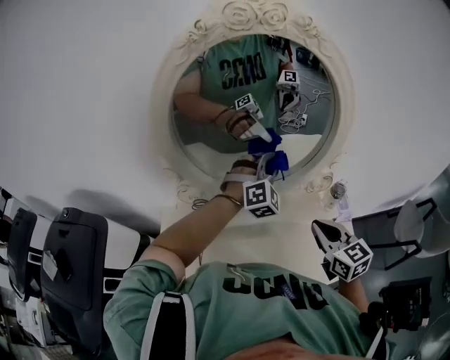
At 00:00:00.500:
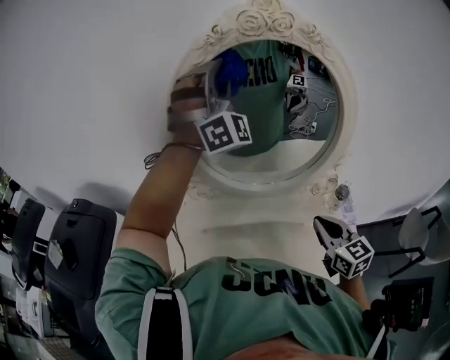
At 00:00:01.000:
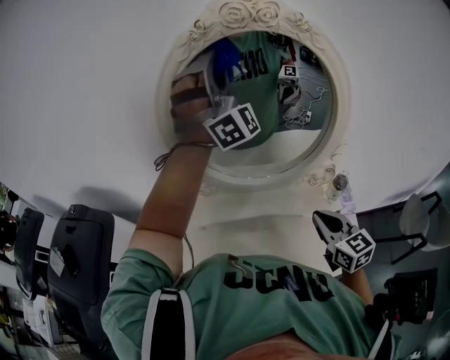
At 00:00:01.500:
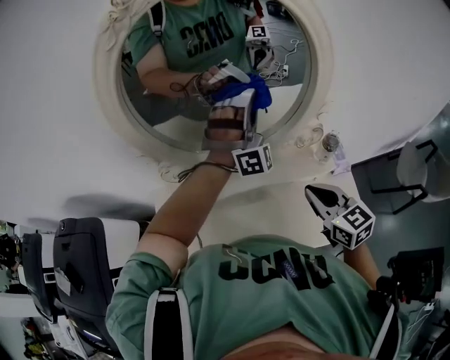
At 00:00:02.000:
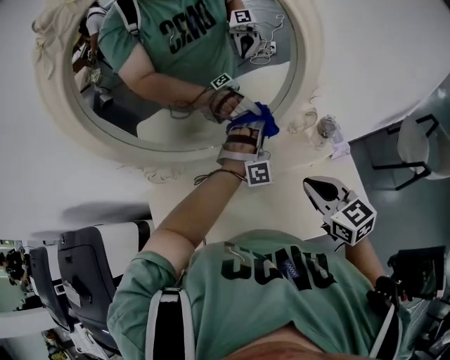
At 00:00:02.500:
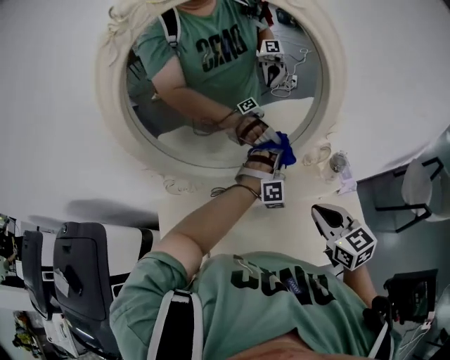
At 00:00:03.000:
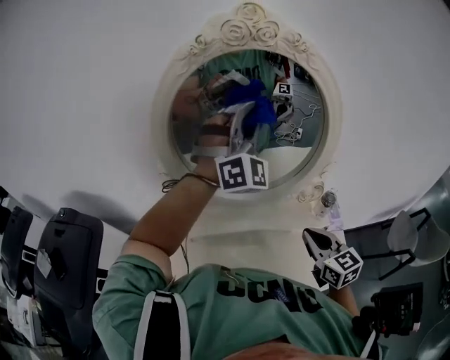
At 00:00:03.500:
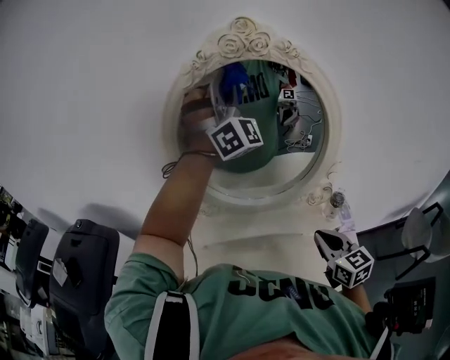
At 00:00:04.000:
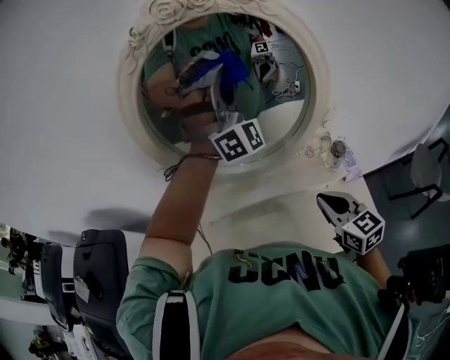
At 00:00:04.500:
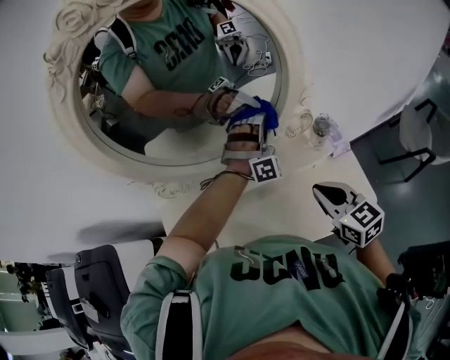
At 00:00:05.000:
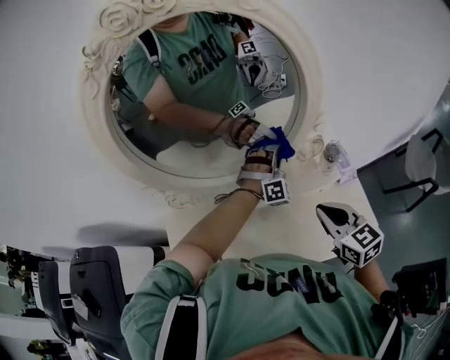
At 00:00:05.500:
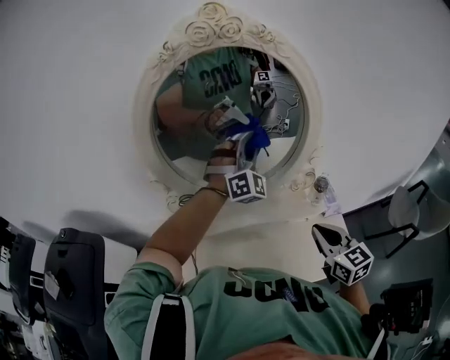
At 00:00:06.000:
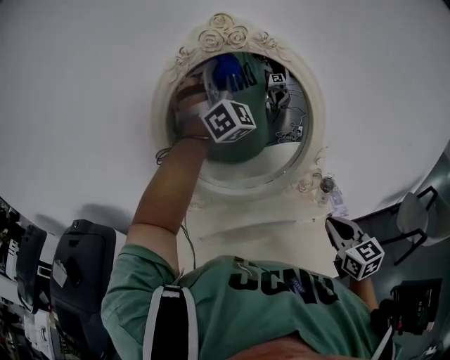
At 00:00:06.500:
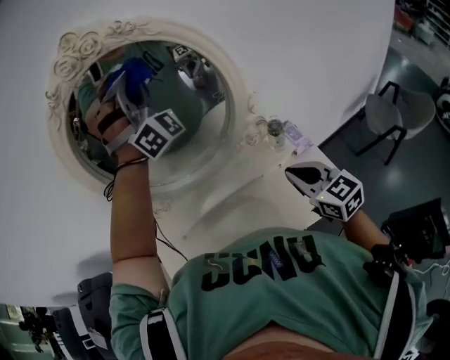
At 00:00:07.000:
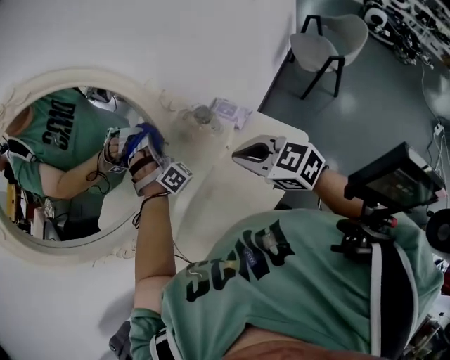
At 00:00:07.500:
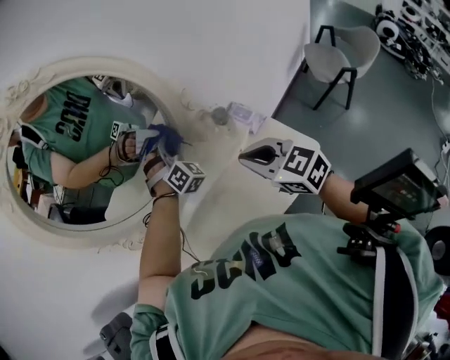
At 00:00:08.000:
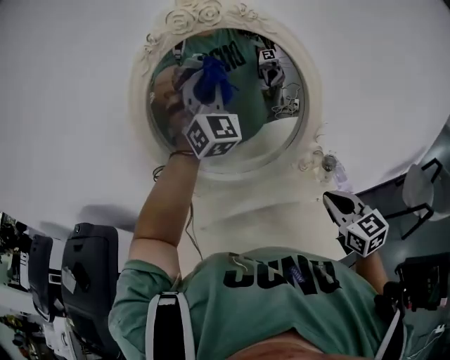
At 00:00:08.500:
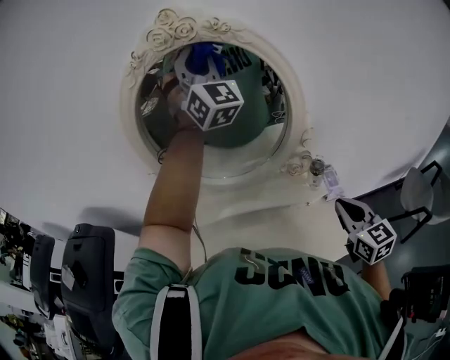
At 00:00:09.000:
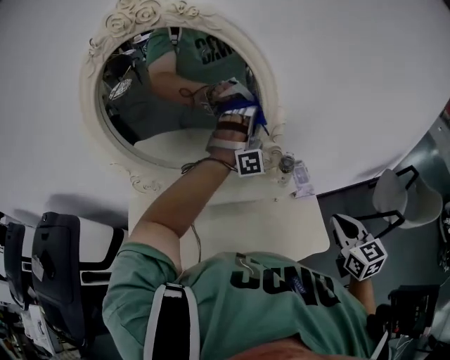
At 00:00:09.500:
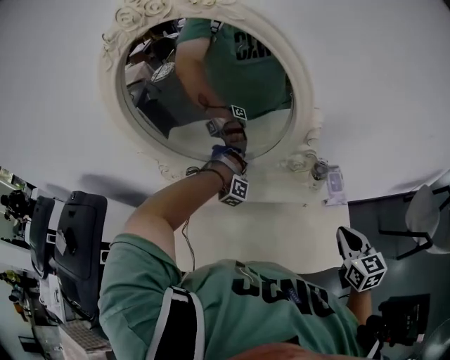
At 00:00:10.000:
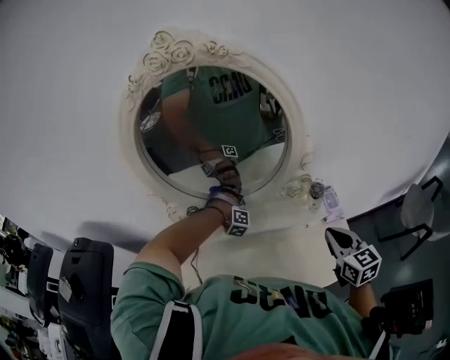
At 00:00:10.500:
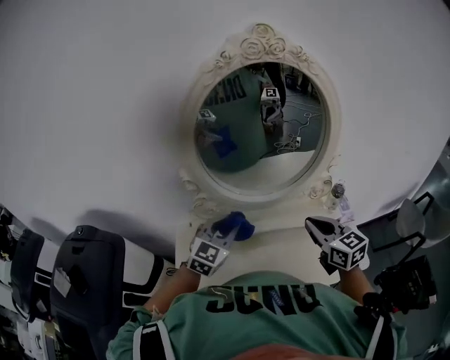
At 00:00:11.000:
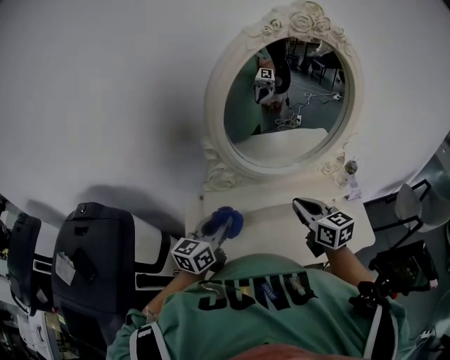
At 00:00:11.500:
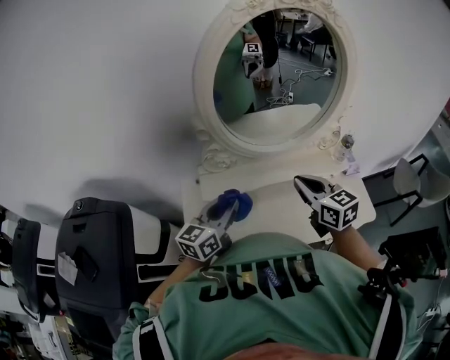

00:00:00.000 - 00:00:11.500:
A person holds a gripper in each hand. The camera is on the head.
00:00:04.000 - 00:00:06.000: The right gripper shifts by approximately 10 cm.
00:00:07.500 - 00:00:09.500: The right gripper ends up approximately 15 cm from where it was.
00:00:09.500 - 00:00:11.500: The right gripper changes place by roughly 40 cm.

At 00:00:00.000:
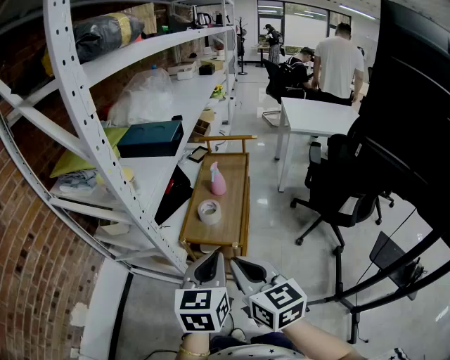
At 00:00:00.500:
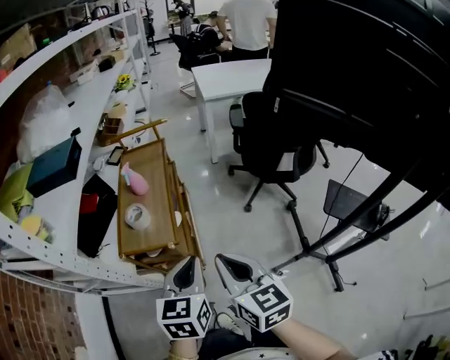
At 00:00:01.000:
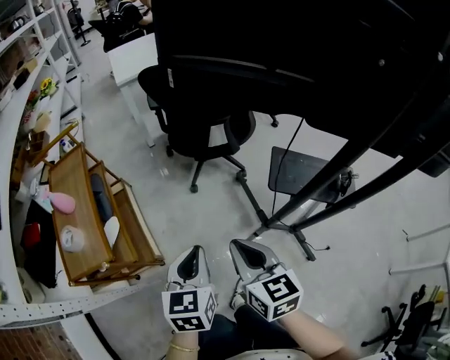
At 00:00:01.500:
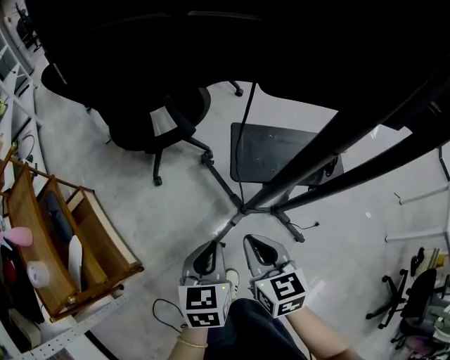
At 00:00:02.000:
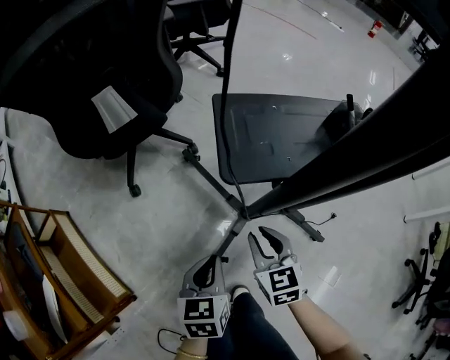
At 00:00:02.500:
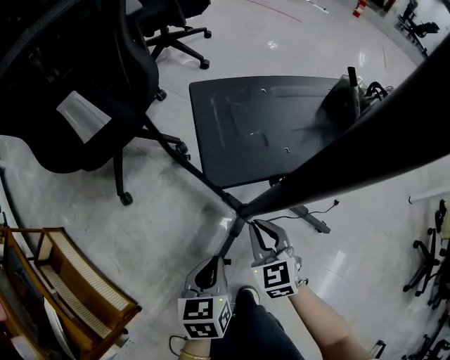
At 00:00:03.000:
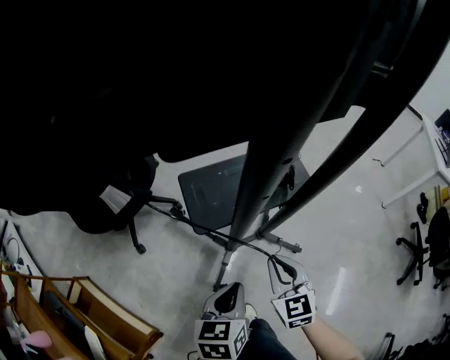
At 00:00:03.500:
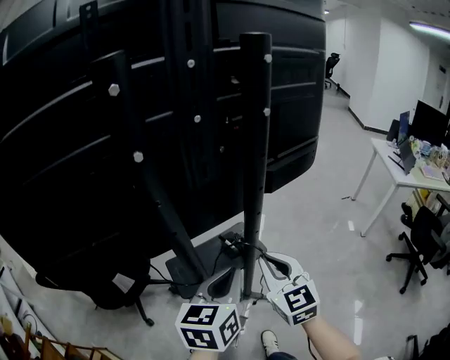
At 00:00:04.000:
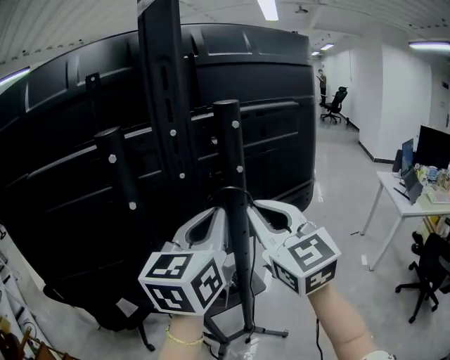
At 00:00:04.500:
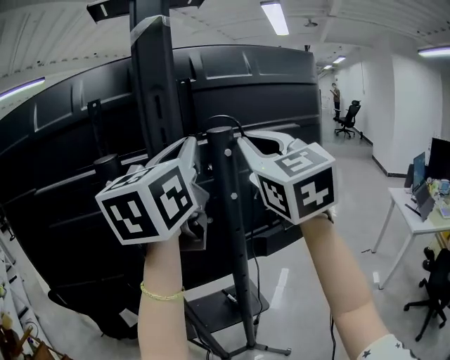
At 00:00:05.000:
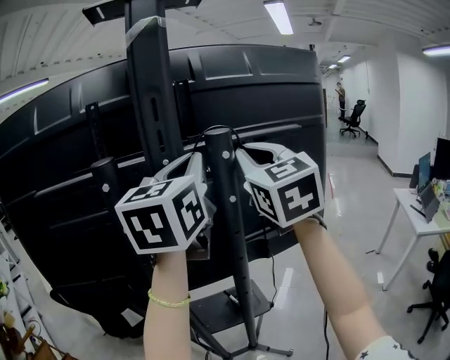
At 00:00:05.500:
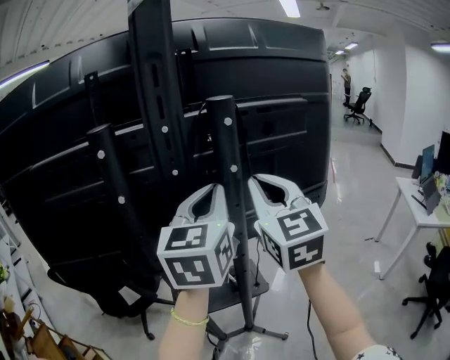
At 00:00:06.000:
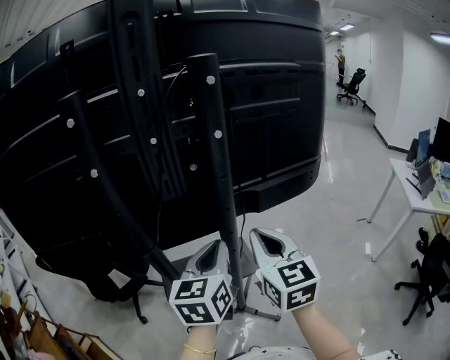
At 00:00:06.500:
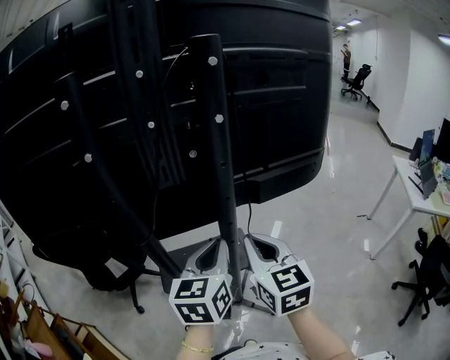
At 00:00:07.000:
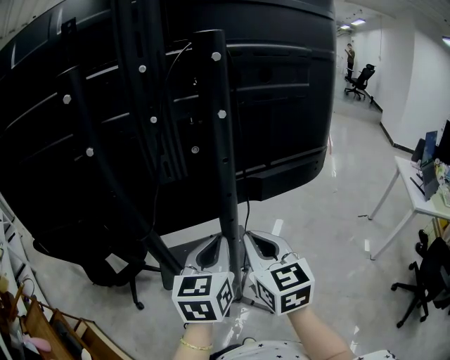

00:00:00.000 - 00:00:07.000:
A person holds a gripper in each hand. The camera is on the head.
00:00:00.000 - 00:00:02.000: The pair of grippers is taken some 60 cm. The left gripper swivels some 60 degrees; the right gripper swivels roughly 70 degrees.
00:00:02.000 - 00:00:03.500: Both grippers move upward, some 50 cm. The left gripper rotates about 40 degrees. Meanwhile the right gripper swivels approximately 30 degrees.
00:00:03.500 - 00:00:05.000: Both grippers travel together upward, approximately 40 cm. The left gripper swivels about 40 degrees. Meanwhile the right gripper rotates some 20 degrees.
00:00:05.000 - 00:00:07.000: Both grippers travel together downward, approximately 35 cm. The right gripper turns by approximately 30 degrees, while the left gripper swivels about 20 degrees.

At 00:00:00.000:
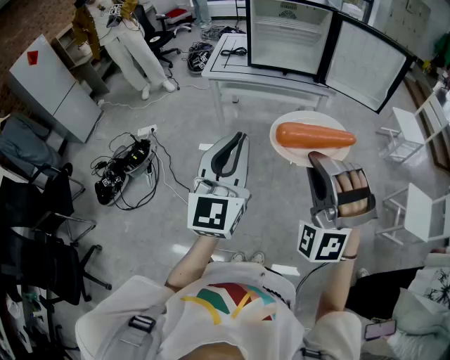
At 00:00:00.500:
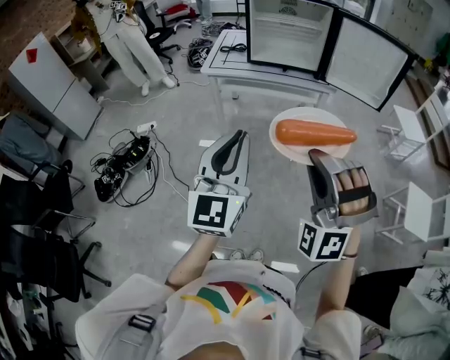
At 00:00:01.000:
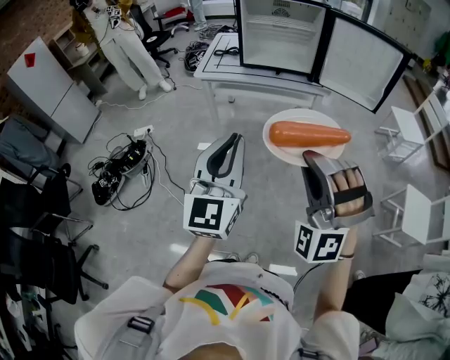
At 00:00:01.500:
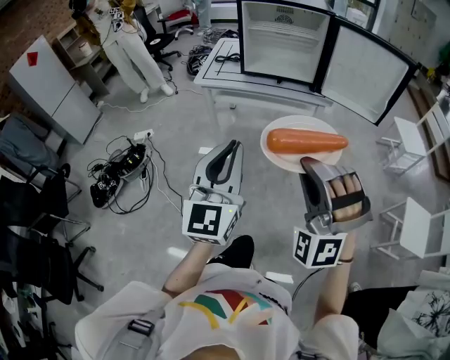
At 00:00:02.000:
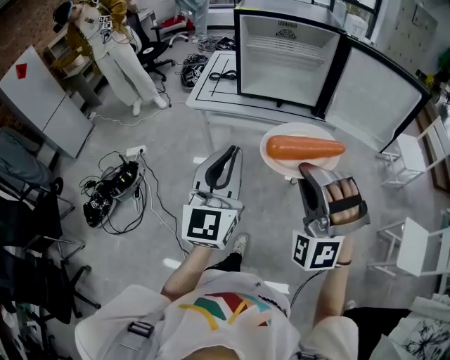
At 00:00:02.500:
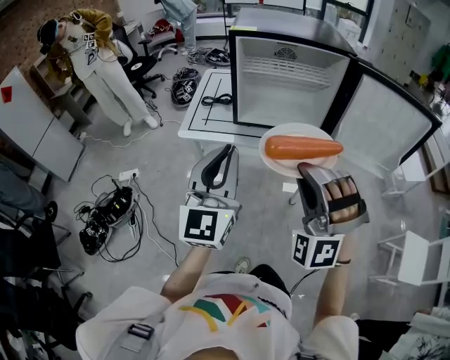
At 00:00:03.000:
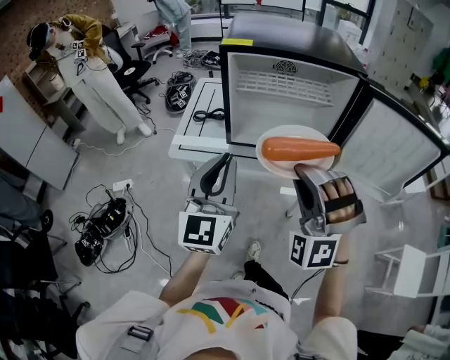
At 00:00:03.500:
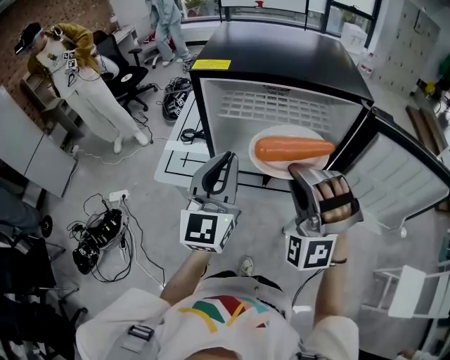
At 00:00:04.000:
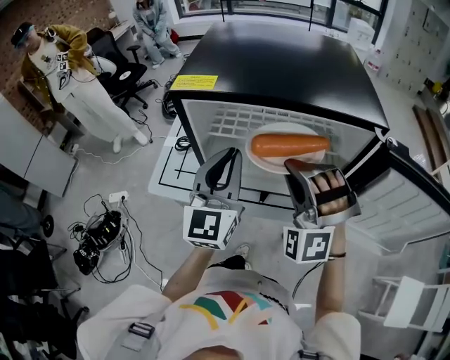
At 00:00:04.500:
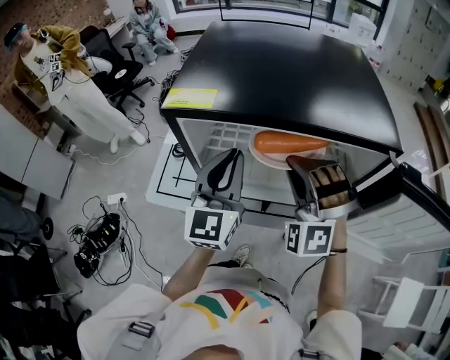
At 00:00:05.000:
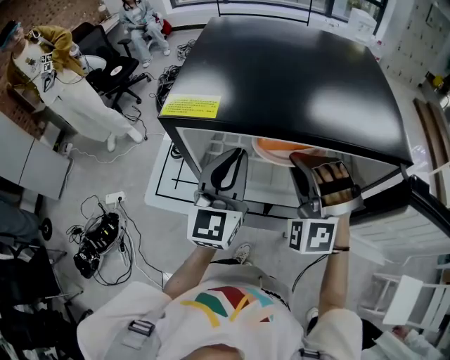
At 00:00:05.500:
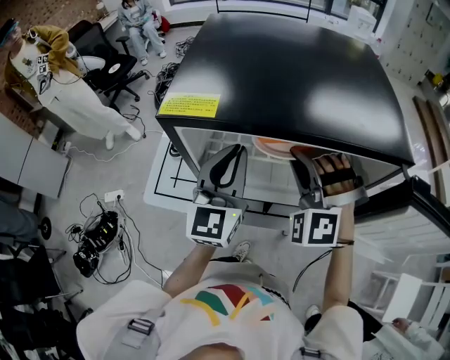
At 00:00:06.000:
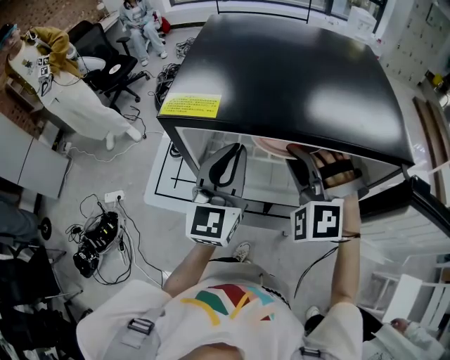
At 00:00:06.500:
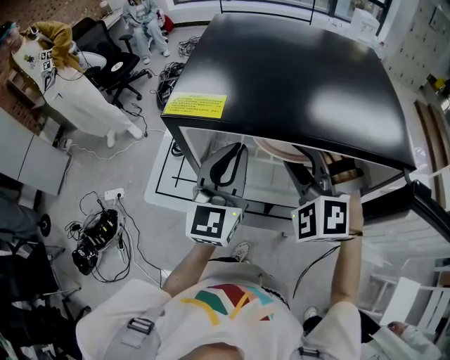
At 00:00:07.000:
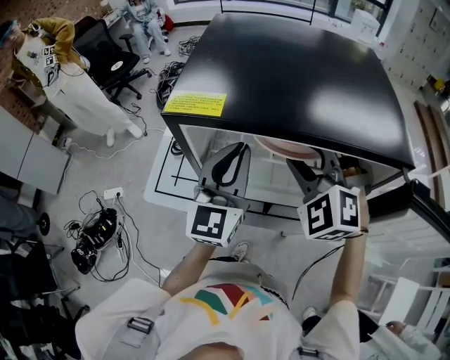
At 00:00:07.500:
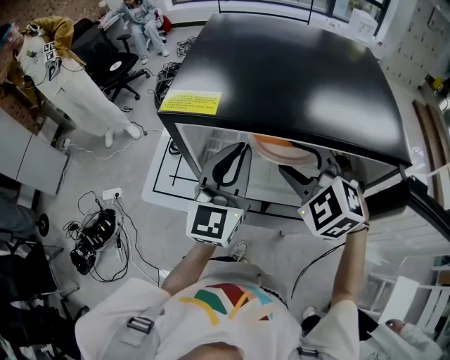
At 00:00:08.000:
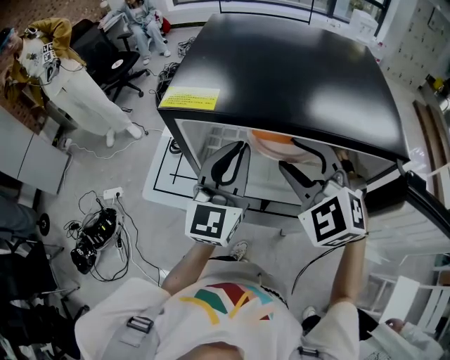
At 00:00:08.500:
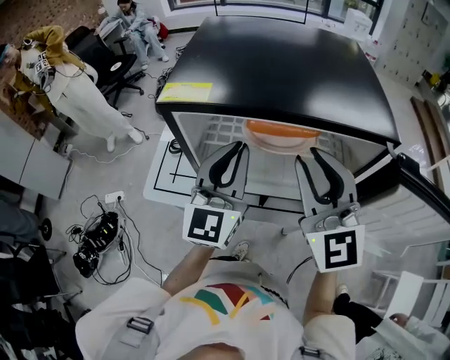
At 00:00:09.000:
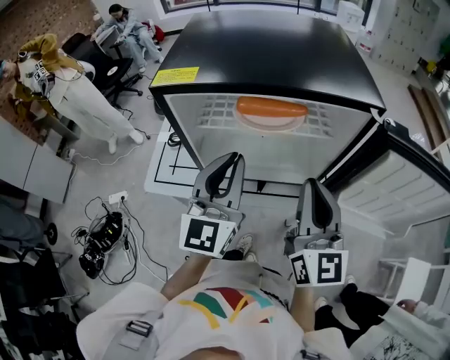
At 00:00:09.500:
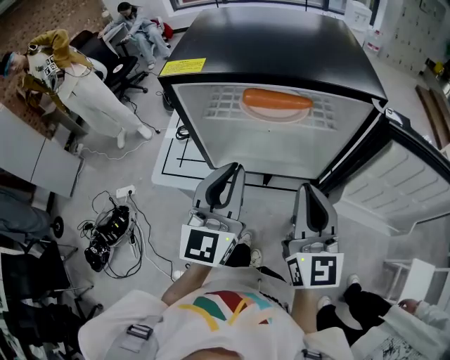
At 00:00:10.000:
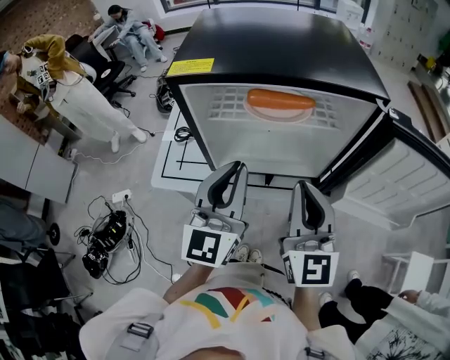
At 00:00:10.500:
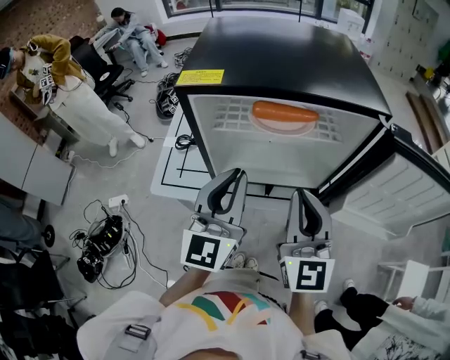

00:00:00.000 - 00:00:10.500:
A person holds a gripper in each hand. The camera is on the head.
00:00:00.000 - 00:00:02.000: Both grippers travel together forward, approximately 20 cm.
00:00:02.000 - 00:00:04.000: The two grippers travel together, forward, some 50 cm.
00:00:04.000 - 00:00:06.500: The two grippers go about 10 cm forward. The right gripper opens.
00:00:06.500 - 00:00:08.500: The left gripper shifts by some 5 cm; the right gripper travels upward and backward by about 15 cm, and twists about 50 degrees clockwise, seen from behind.
00:00:08.500 - 00:00:10.500: The right gripper moves backward and downward, some 10 cm, and closes its fingers, while the left gripper goes roughly 10 cm backward.
